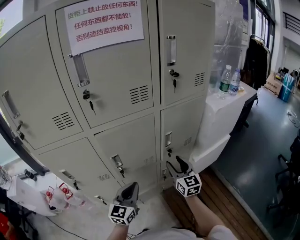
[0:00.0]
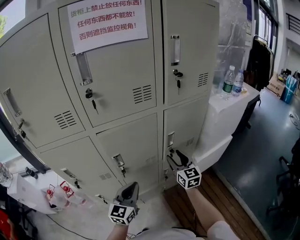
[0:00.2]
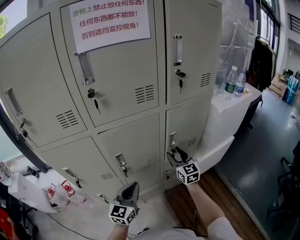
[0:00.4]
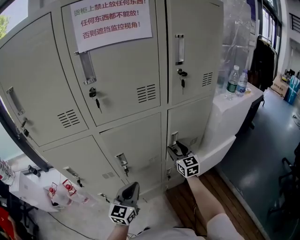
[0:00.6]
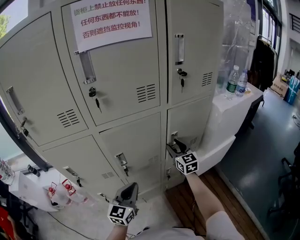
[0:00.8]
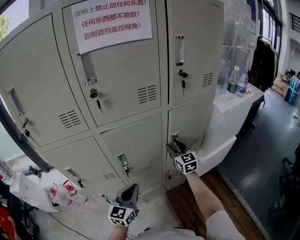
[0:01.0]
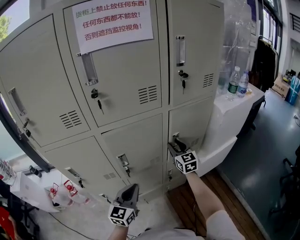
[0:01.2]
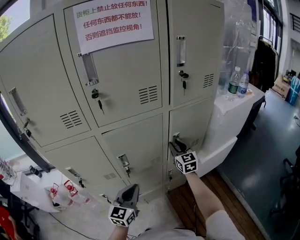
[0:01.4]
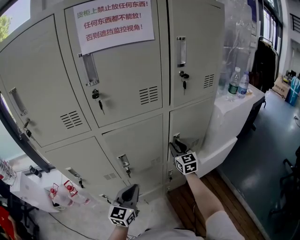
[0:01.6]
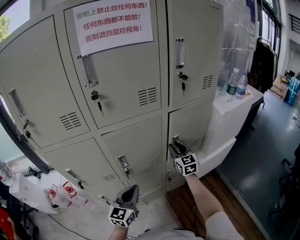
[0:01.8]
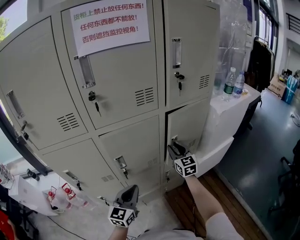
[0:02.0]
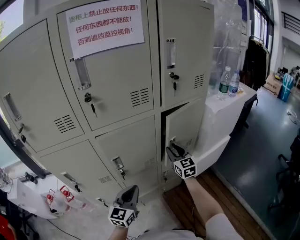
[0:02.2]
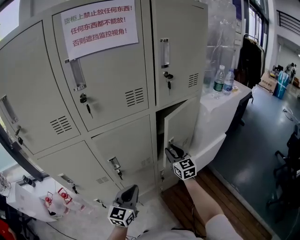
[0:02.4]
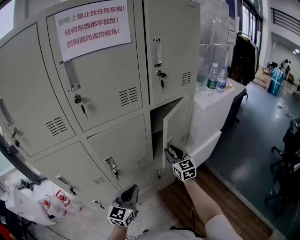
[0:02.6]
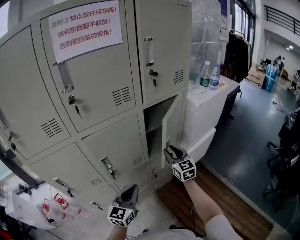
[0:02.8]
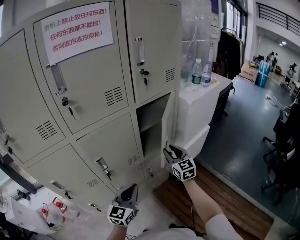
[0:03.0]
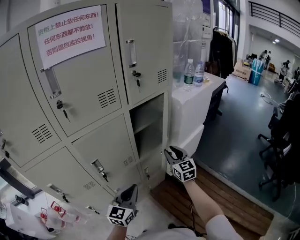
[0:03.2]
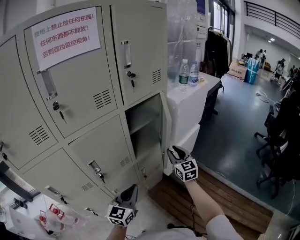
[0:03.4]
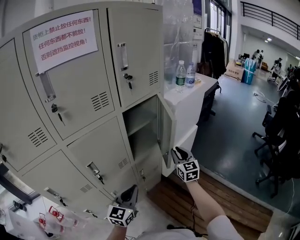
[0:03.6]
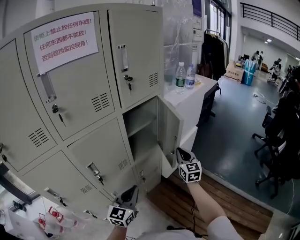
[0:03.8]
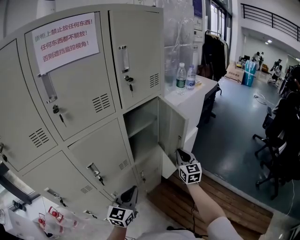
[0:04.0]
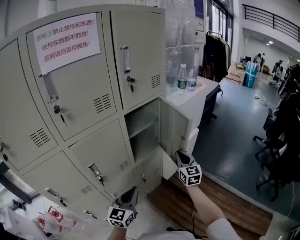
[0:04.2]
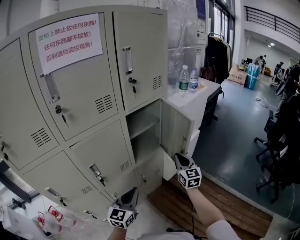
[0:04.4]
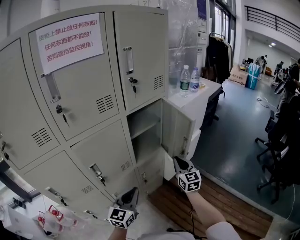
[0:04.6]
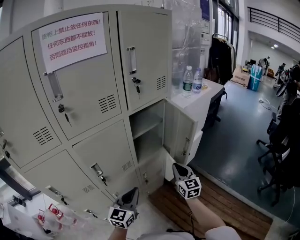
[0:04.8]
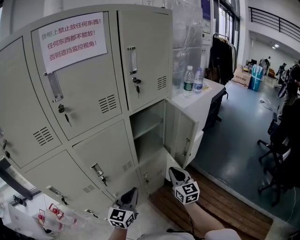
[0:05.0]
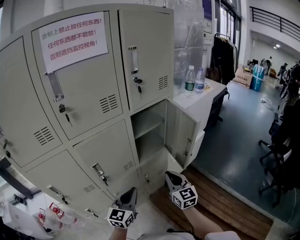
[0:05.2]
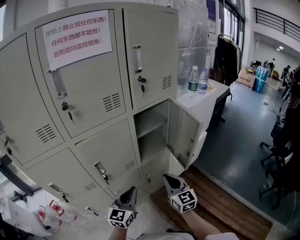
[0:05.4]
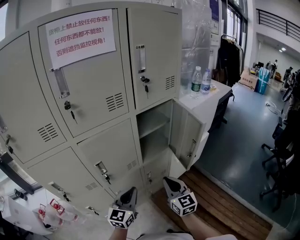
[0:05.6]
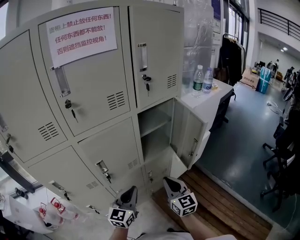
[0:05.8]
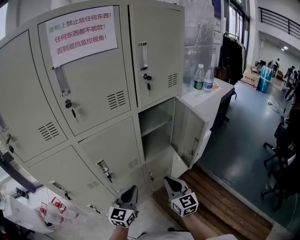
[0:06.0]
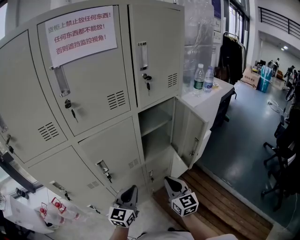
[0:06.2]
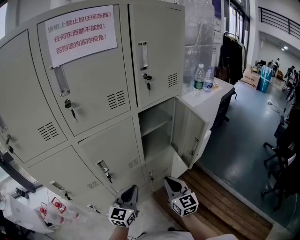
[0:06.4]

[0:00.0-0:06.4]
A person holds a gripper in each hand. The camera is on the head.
0:00.0 to 0:01.6: The right gripper heads forward, covering some 10 cm.
0:01.6 to 0:03.2: The right gripper moves to the right and backward, approximately 15 cm. The left gripper travels to the right by roughly 10 cm.
0:03.2 to 0:04.8: The right gripper moves backward, some 5 cm, and closes its fingers.
0:04.8 to 0:06.4: The right gripper goes some 10 cm to the left and backward.

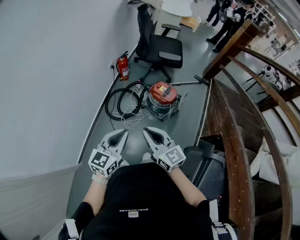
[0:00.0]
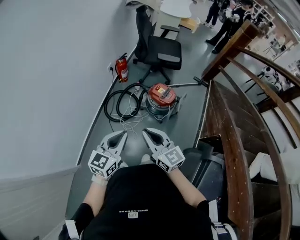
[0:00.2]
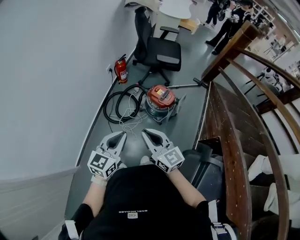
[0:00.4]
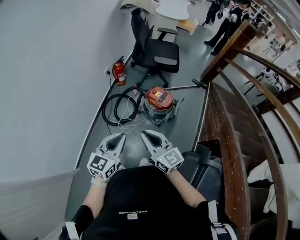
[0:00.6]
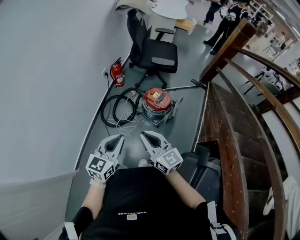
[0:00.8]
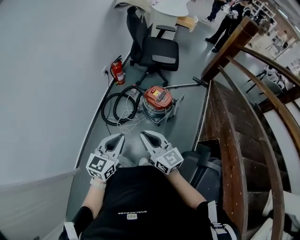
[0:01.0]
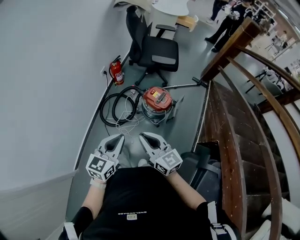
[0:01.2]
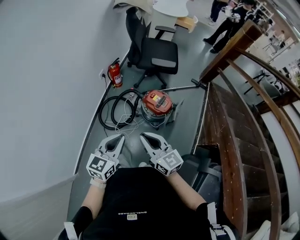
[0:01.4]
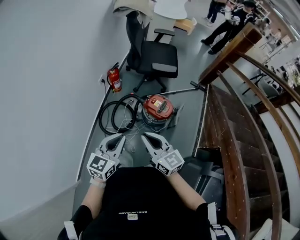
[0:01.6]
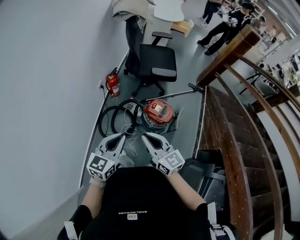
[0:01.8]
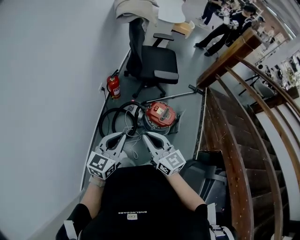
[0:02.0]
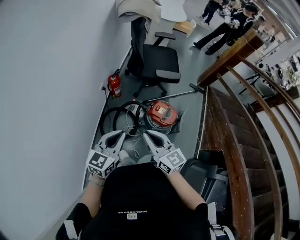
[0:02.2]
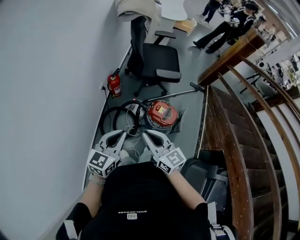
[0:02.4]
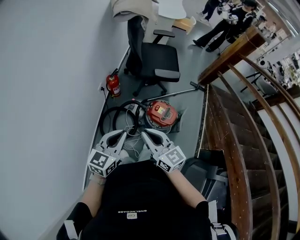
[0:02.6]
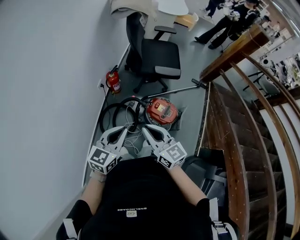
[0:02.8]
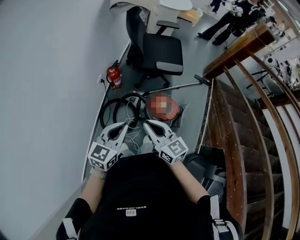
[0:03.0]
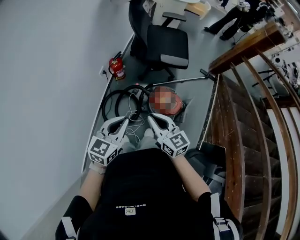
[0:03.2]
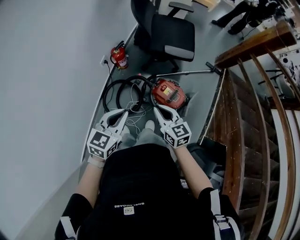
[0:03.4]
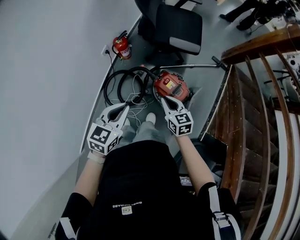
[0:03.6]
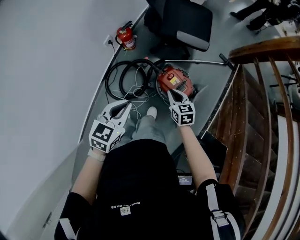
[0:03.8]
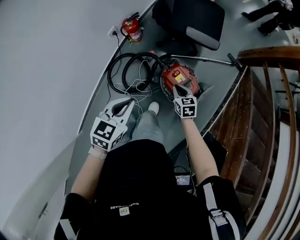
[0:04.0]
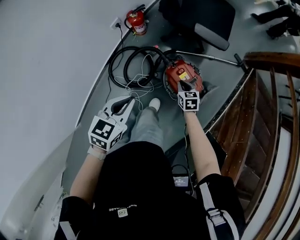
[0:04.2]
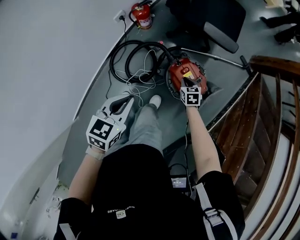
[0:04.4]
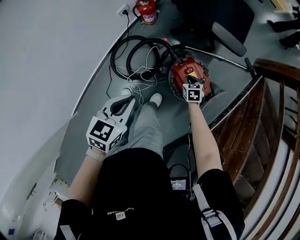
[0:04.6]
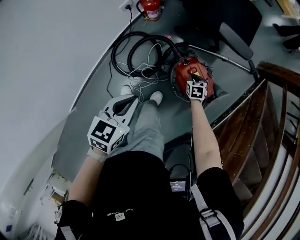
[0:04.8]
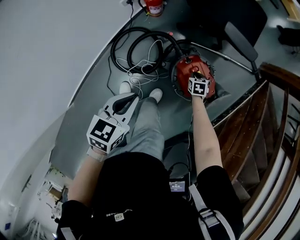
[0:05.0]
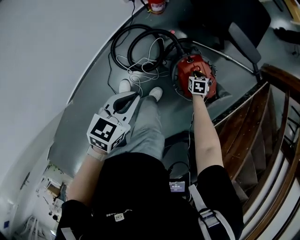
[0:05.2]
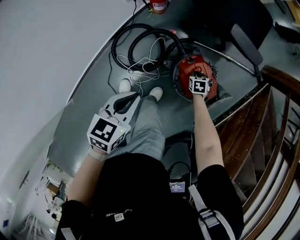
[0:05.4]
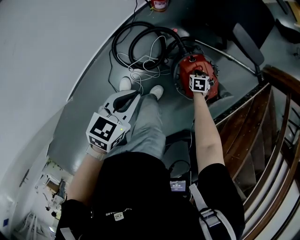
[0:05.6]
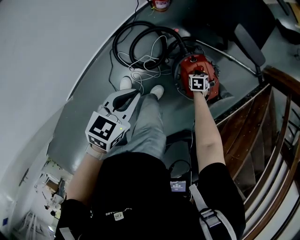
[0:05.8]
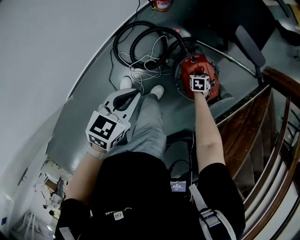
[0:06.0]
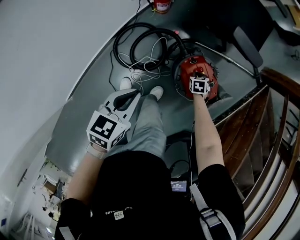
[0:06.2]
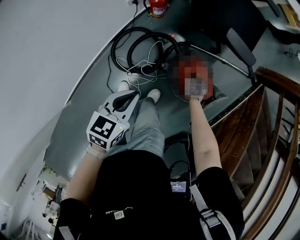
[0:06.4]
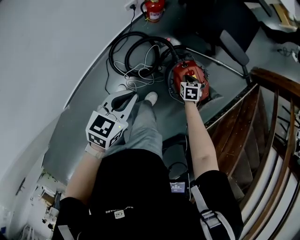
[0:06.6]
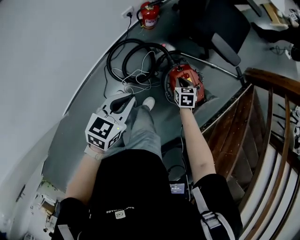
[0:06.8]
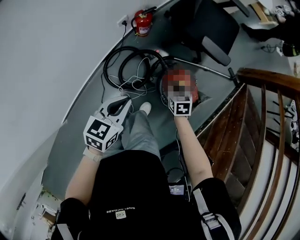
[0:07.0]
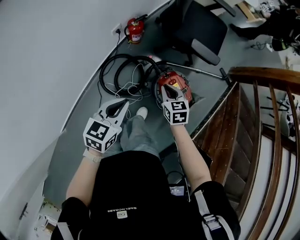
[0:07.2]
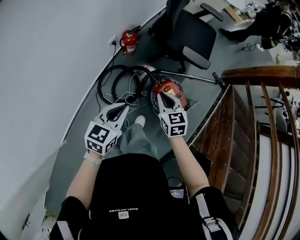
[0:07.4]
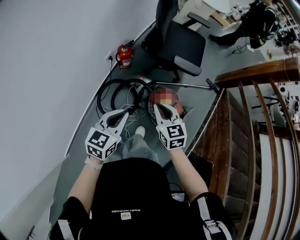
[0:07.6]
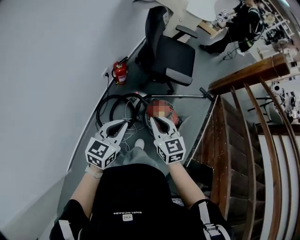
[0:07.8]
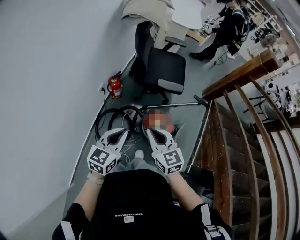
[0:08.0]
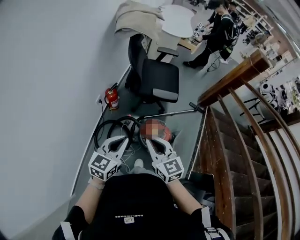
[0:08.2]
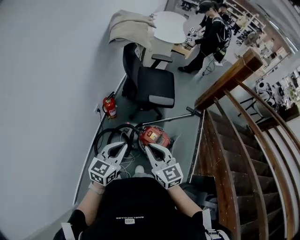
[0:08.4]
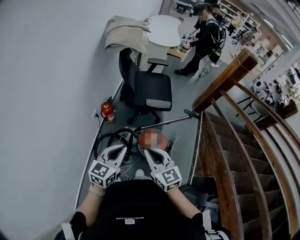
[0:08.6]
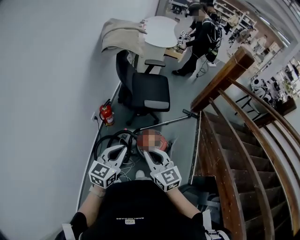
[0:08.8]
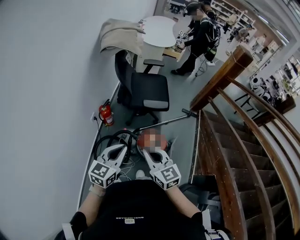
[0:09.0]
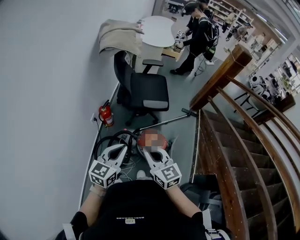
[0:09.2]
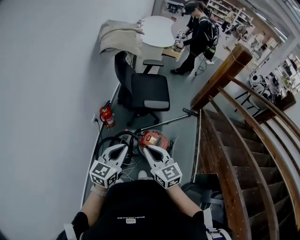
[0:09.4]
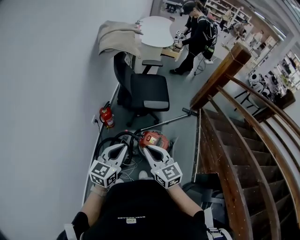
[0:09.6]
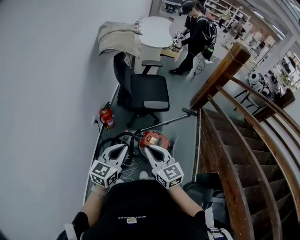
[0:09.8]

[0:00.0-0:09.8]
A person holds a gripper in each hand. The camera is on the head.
0:00.0 to 0:01.4: Both grippers move forward and to the right, approximately 15 cm.
0:01.4 to 0:02.8: Both grippers move forward, about 20 cm.
0:02.8 to 0:04.2: The left gripper travels downward and forward by approximately 20 cm, and changes its angle by approximately 30 degrees. Meanwhile the right gripper travels downward, forward and to the right by roughly 50 cm, and angles its fingers downward, by about 50 degrees.
0:04.2 to 0:05.6: The left gripper travels downward by some 15 cm. The right gripper heads downward, covering about 20 cm, and rotates about 20 degrees.
0:05.6 to 0:07.0: The left gripper heads upward, covering about 10 cm. Meanwhile the right gripper is displaced upward by some 30 cm, and changes its angle by about 20 degrees.
0:07.0 to 0:08.4: The left gripper heads upward, covering about 25 cm, and turns by approximately 30 degrees. The right gripper goes roughly 40 cm upward, and tips its fingers upward by approximately 40 degrees.
0:08.4 to 0:09.8: The grippers make only small movements.

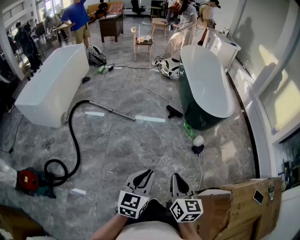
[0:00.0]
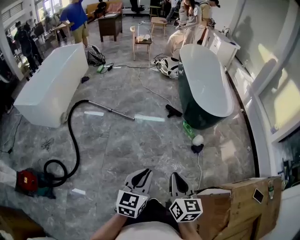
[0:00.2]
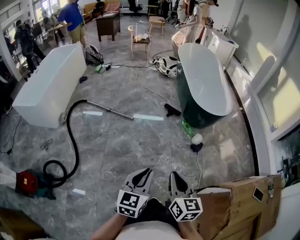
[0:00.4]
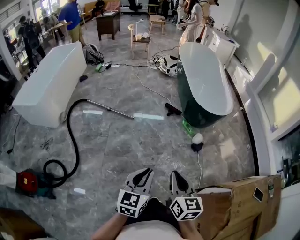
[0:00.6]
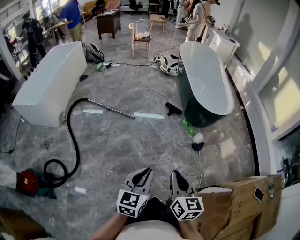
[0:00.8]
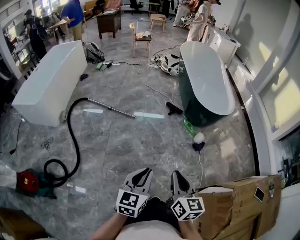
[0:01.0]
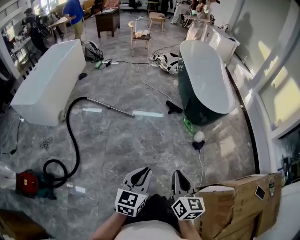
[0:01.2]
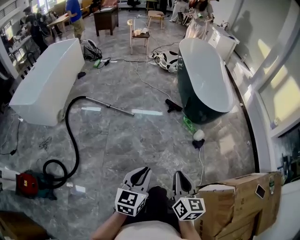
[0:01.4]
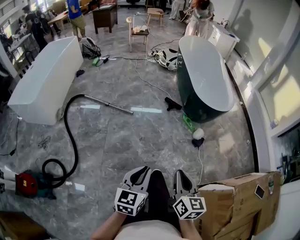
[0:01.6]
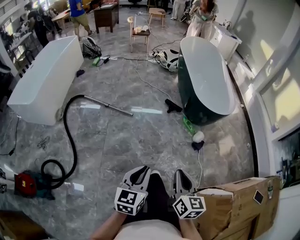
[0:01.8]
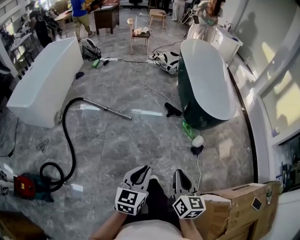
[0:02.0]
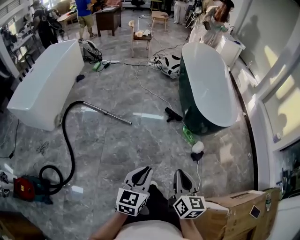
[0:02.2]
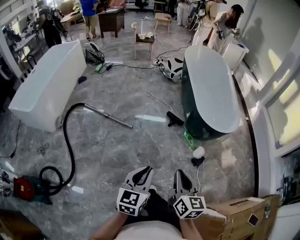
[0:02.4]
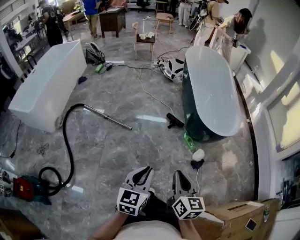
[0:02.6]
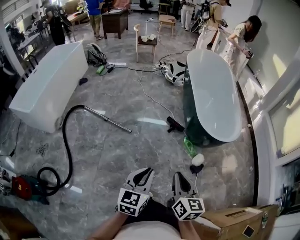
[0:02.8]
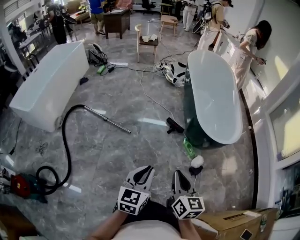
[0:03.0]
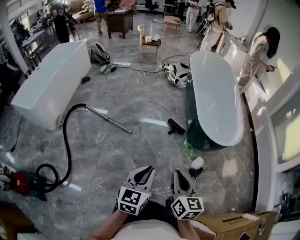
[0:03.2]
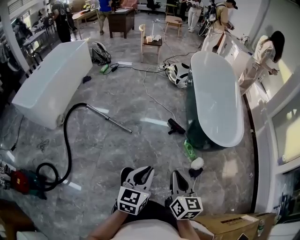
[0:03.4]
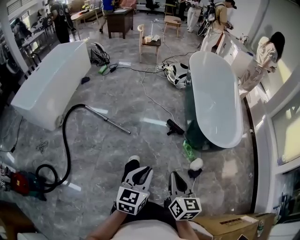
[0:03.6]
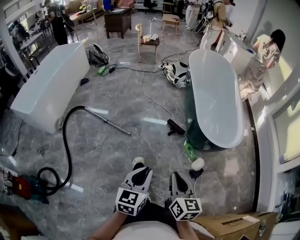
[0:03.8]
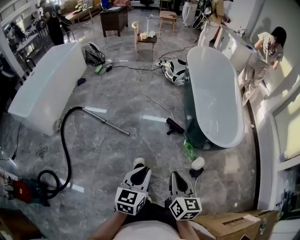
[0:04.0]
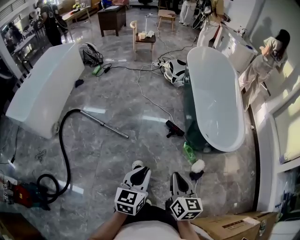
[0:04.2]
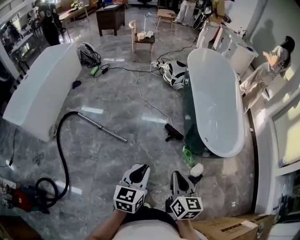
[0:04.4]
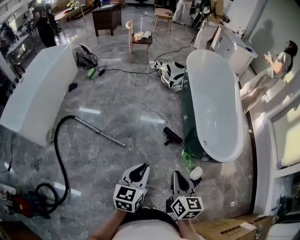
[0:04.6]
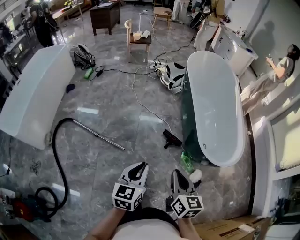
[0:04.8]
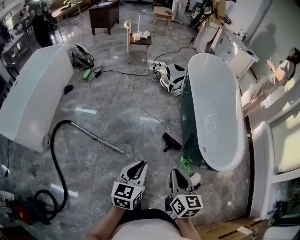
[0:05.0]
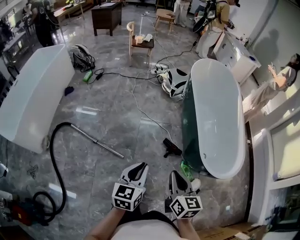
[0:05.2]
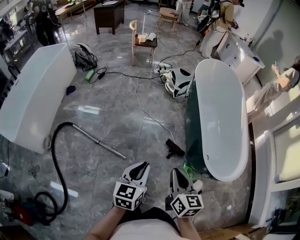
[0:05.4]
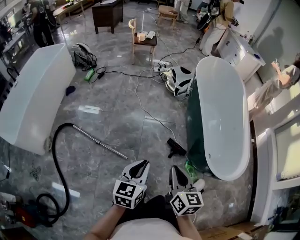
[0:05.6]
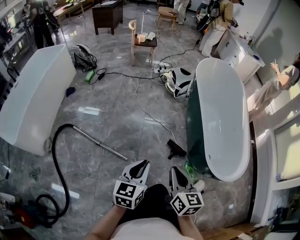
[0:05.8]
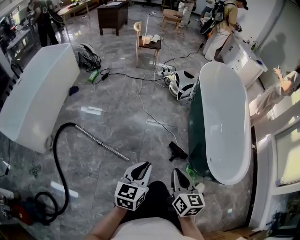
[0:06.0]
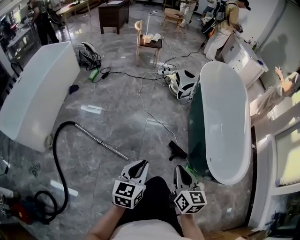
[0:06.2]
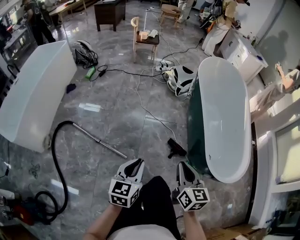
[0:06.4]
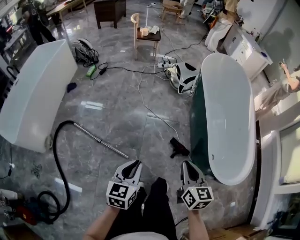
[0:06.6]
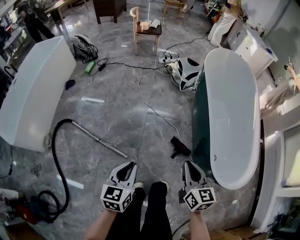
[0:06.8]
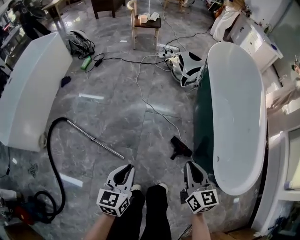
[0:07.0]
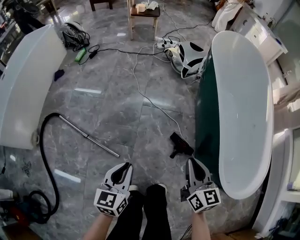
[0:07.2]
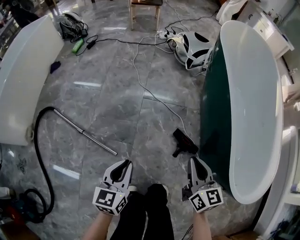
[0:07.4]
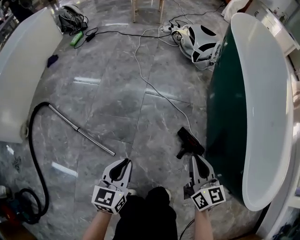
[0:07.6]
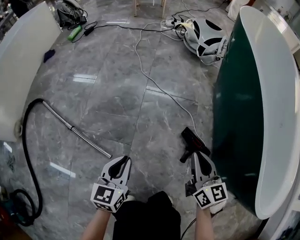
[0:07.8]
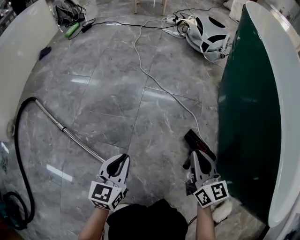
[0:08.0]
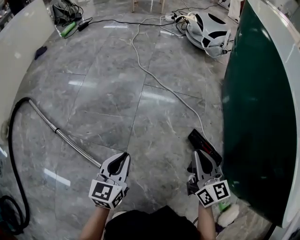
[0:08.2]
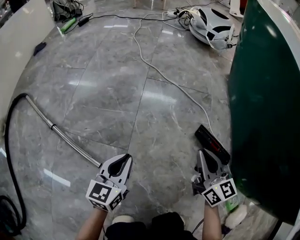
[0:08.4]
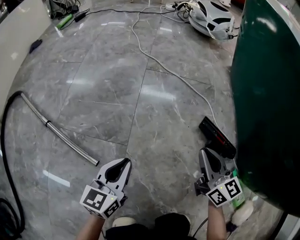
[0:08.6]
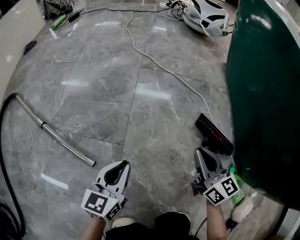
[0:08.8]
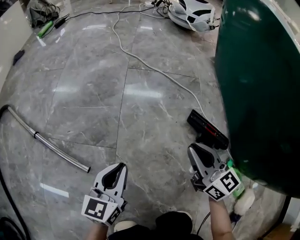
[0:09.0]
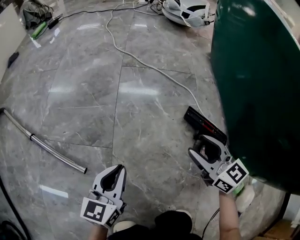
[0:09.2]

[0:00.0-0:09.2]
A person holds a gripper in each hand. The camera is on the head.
0:00.0 to 0:01.6: The left gripper shifts some 5 cm to the left.
0:01.6 to 0:03.0: The two grippers go about 25 cm forward.
0:03.0 to 0:04.6: The grippers both shift forward by approximately 20 cm.
0:04.6 to 0:06.2: Both grippers move forward and to the left, approximately 20 cm.
0:06.2 to 0:07.6: The left gripper shifts approximately 40 cm downward. The right gripper shifts roughly 40 cm downward and forward.
0:07.6 to 0:09.2: The two grippers go about 35 cm downward.
